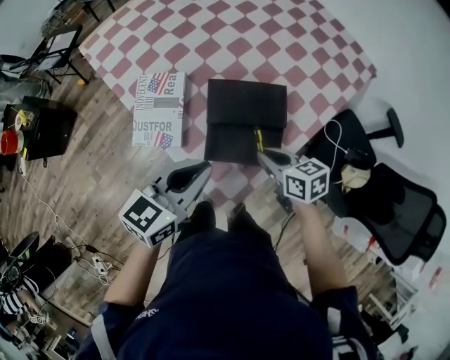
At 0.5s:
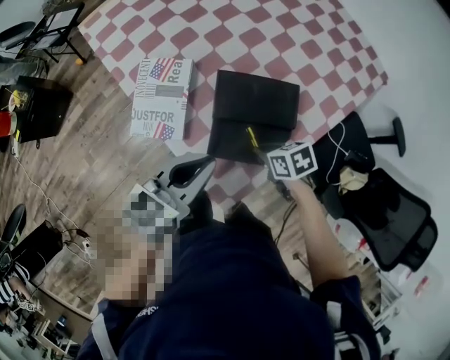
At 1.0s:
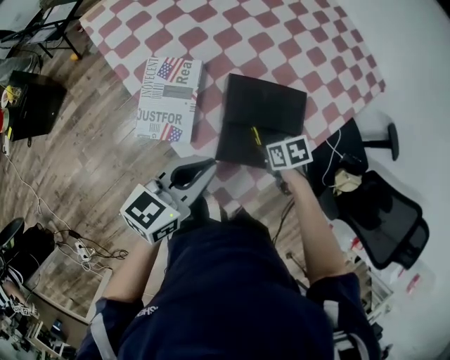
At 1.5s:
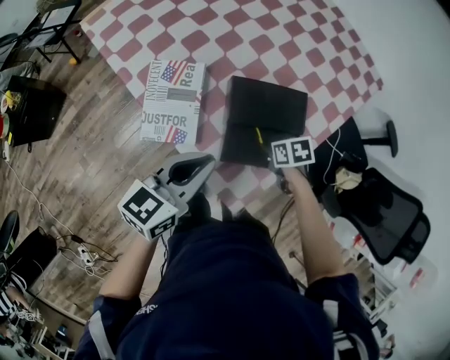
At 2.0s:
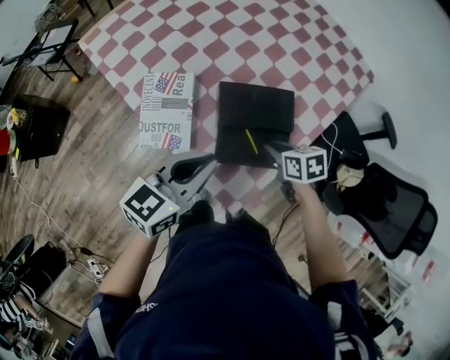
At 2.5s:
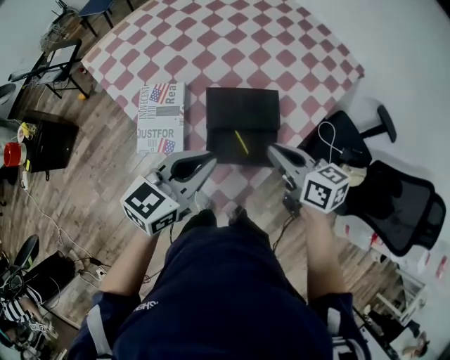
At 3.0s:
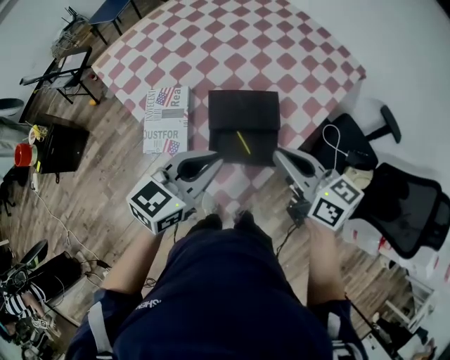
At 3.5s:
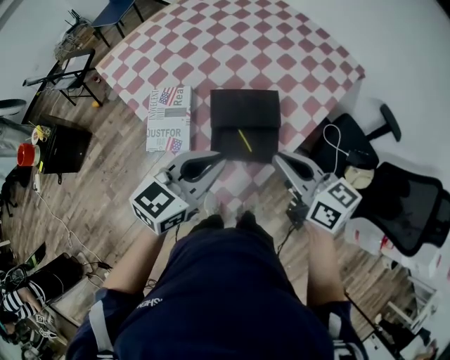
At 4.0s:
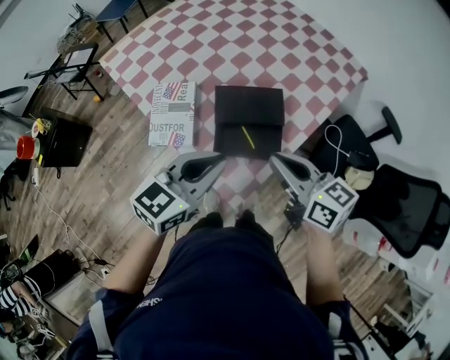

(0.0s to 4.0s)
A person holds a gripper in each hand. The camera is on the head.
0.0s - 2.0s: The right gripper goes downward and returns, some 10 cm each way.
2.0s - 4.0s: The right gripper moves upward, about 20 cm, and tilts its fingers approximately 40 degrees upward; the left gripper goes approximately 10 cm upward, to the right and backward.

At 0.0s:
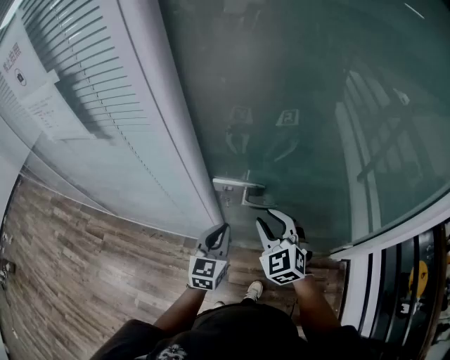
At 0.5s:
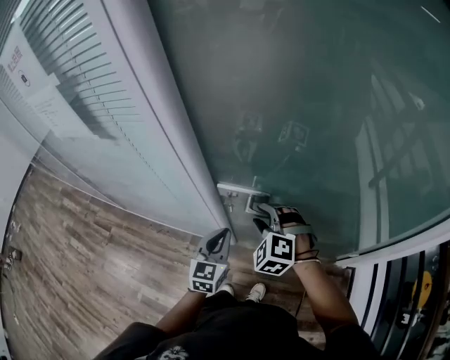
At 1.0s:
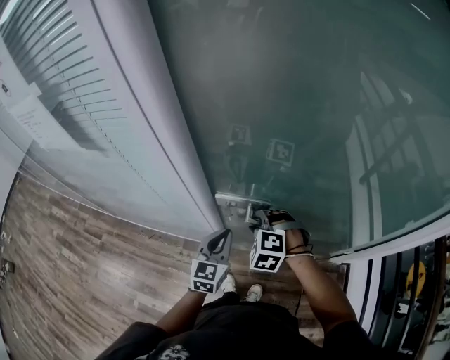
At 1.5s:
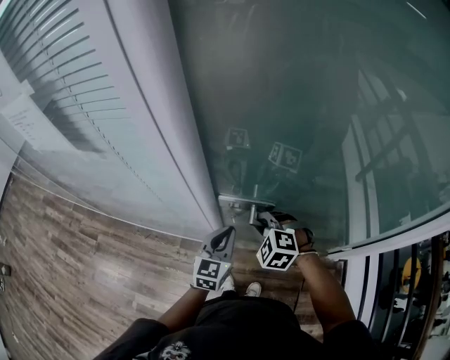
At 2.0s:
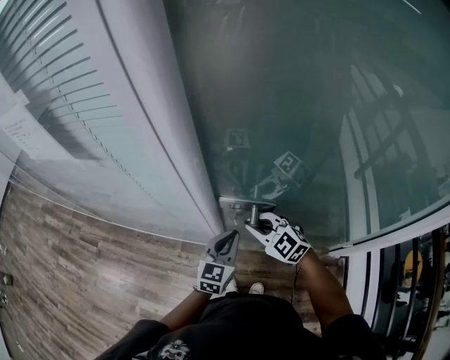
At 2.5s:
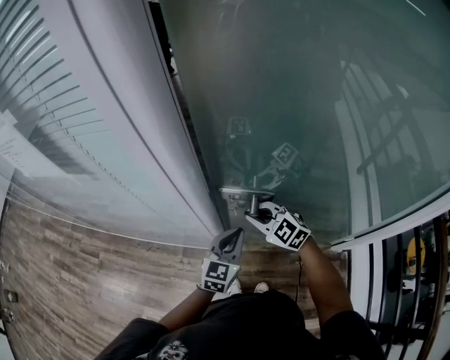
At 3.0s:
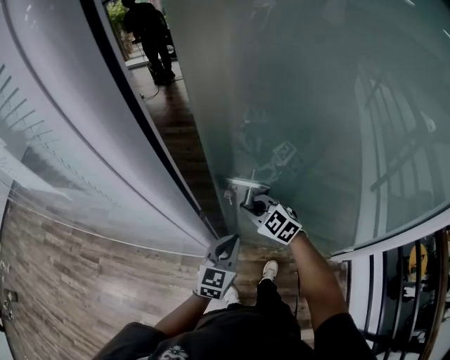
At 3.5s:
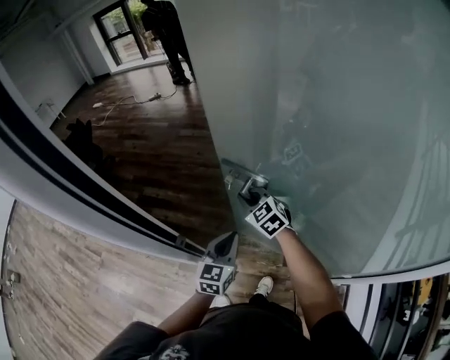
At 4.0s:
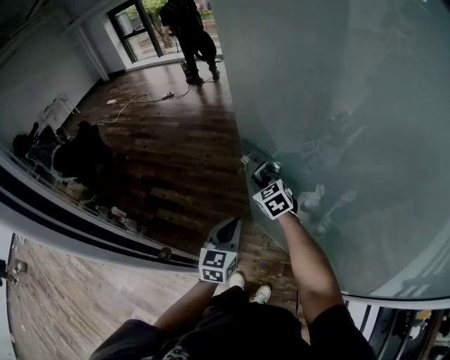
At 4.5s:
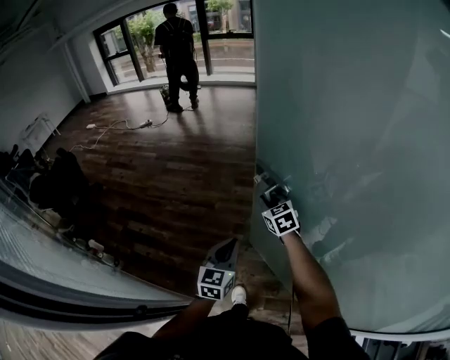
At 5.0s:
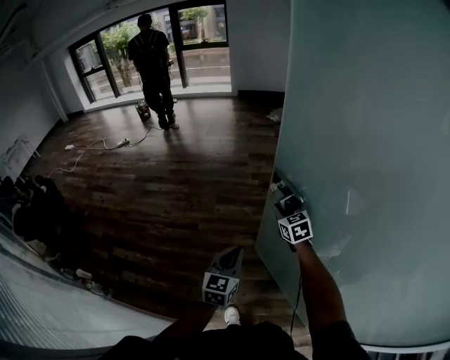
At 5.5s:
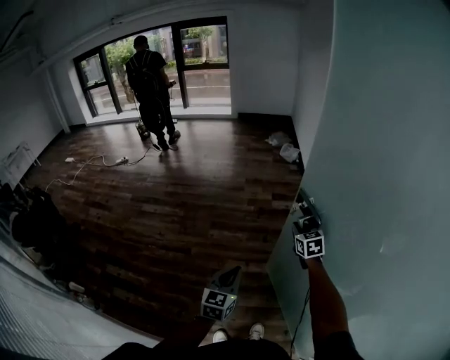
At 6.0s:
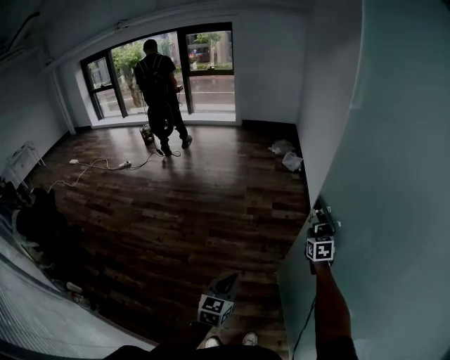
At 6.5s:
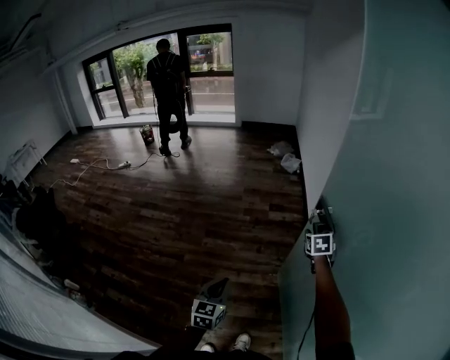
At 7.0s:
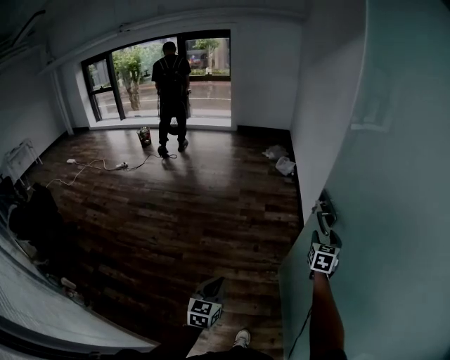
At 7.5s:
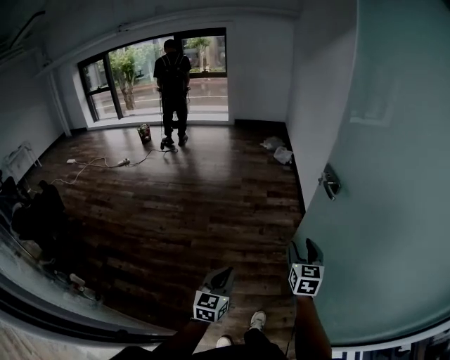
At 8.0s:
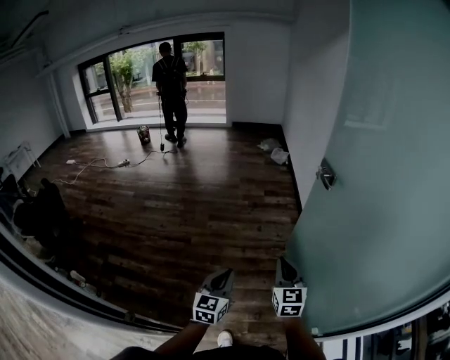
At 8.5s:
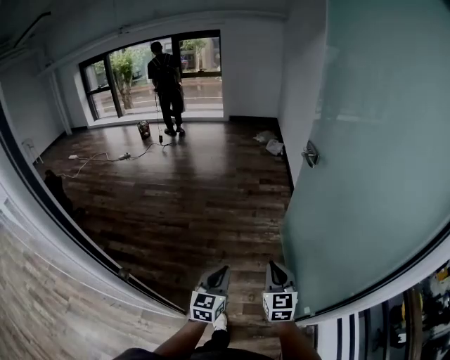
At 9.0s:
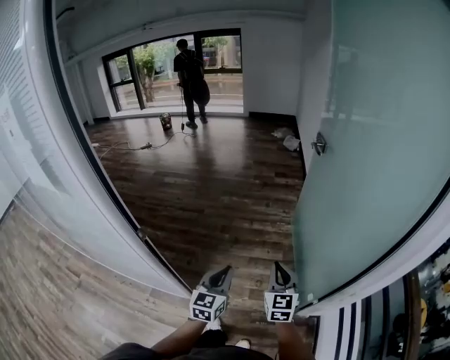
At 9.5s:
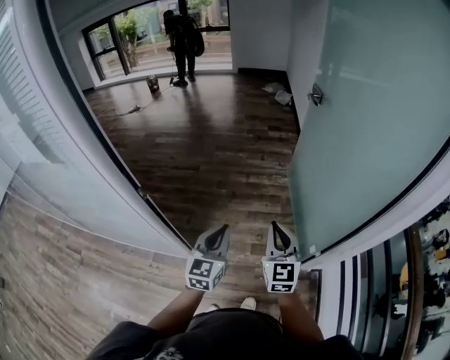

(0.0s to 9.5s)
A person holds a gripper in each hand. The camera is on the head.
0.0s - 2.0s: The left gripper moves forward, roughly 5 cm, while the right gripper heads downward, forward and to the left, covering approximately 10 cm, swivels some 30 degrees, and closes its fingers.
2.0s - 4.0s: Both grippers travel together forward and to the right, roughly 40 cm. The right gripper rotates some 20 degrees.
4.0s - 5.5s: The left gripper is displaced forward and to the right by roughly 40 cm. Meanwhile the right gripper shifts some 50 cm to the right and forward, and rotates approximately 30 degrees.
5.5s - 7.5s: The right gripper heads backward, covering approximately 30 cm, turns by approximately 20 degrees, and opens, while the left gripper shifts roughly 20 cm backward.
7.5s - 9.5s: The pair of grippers is taken backward, approximately 50 cm. The right gripper closes its fingers.

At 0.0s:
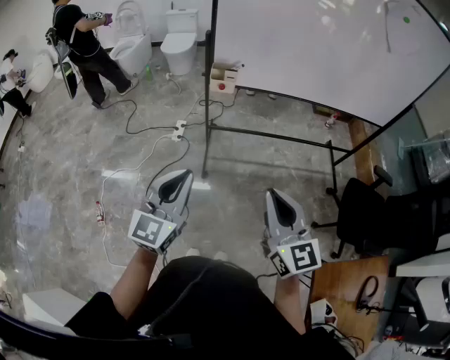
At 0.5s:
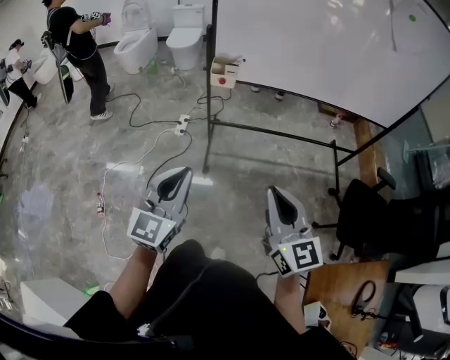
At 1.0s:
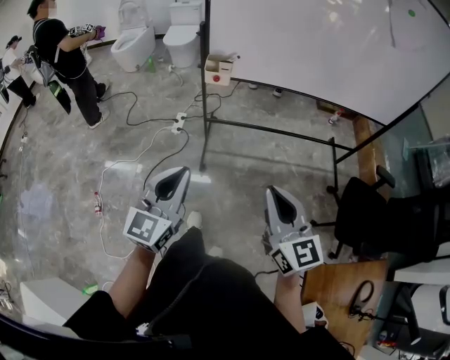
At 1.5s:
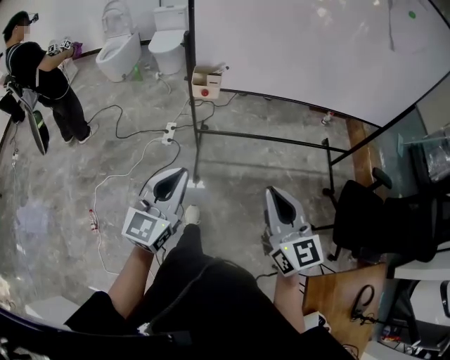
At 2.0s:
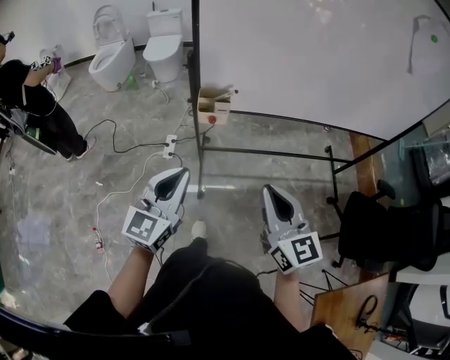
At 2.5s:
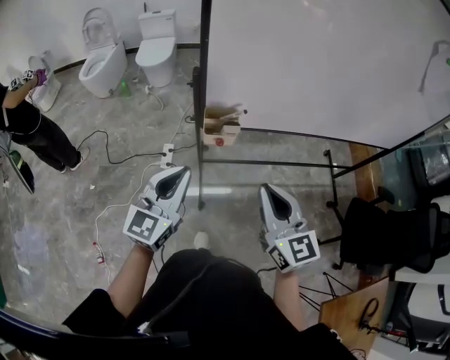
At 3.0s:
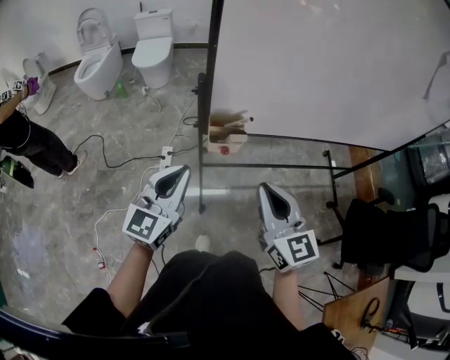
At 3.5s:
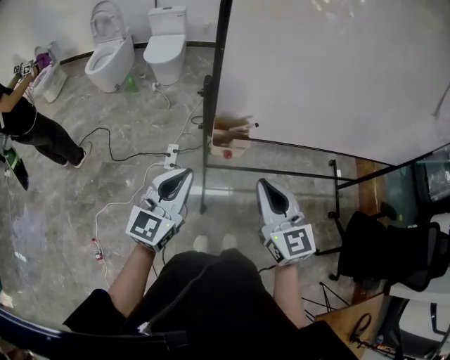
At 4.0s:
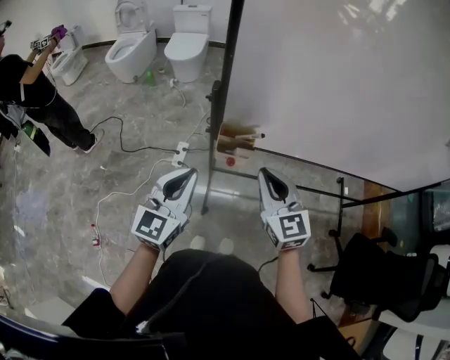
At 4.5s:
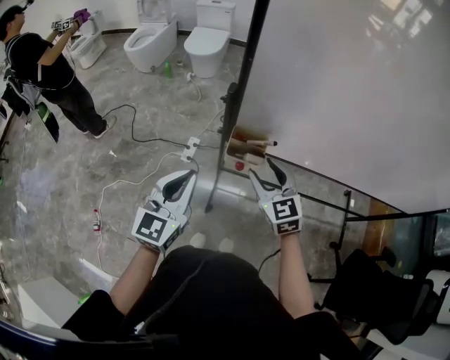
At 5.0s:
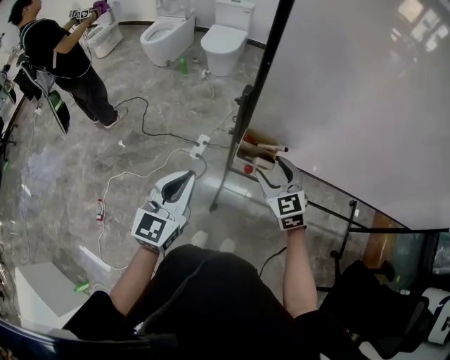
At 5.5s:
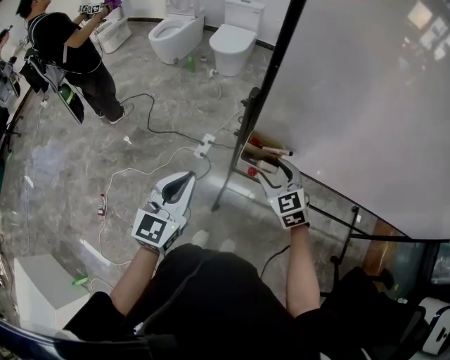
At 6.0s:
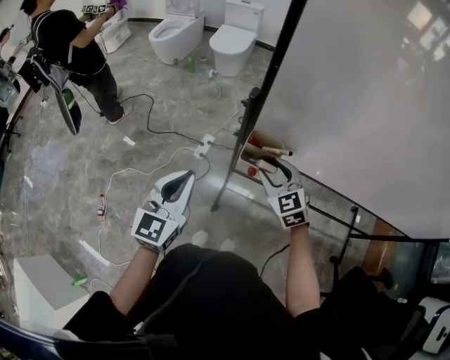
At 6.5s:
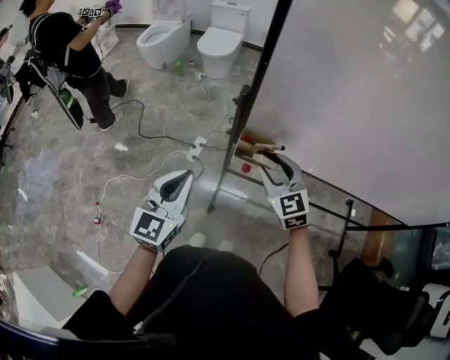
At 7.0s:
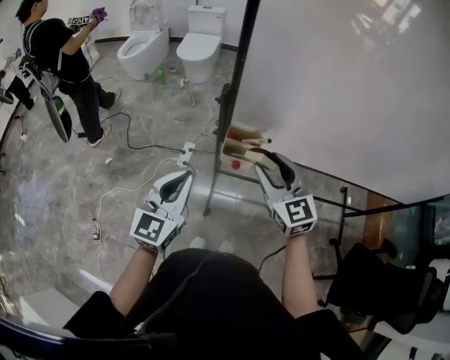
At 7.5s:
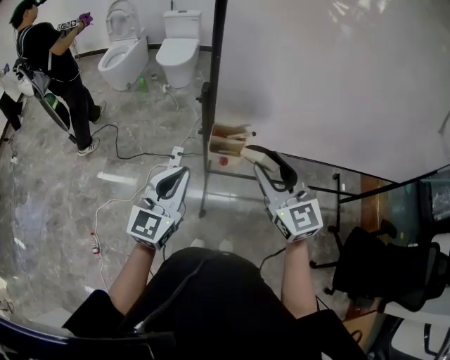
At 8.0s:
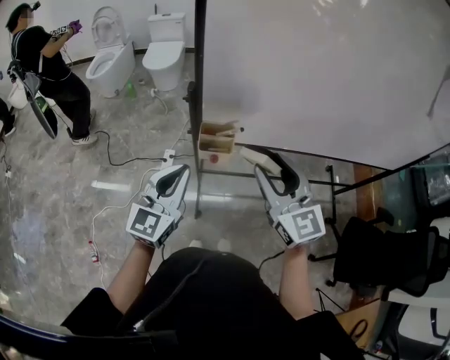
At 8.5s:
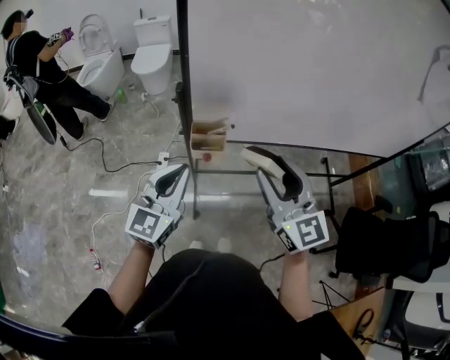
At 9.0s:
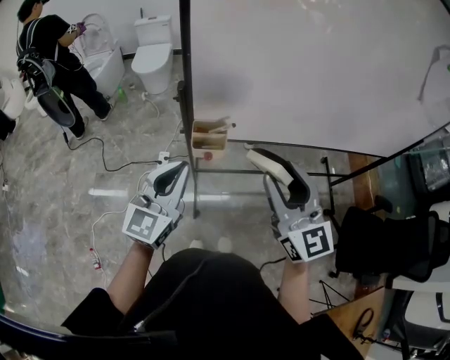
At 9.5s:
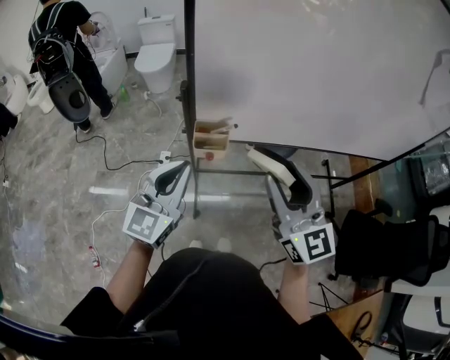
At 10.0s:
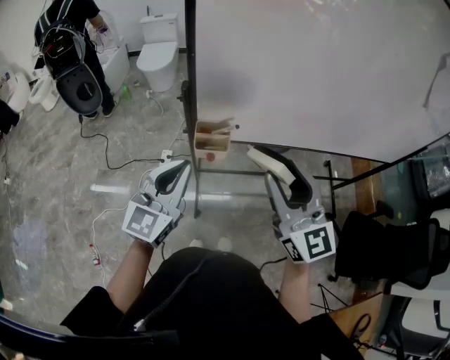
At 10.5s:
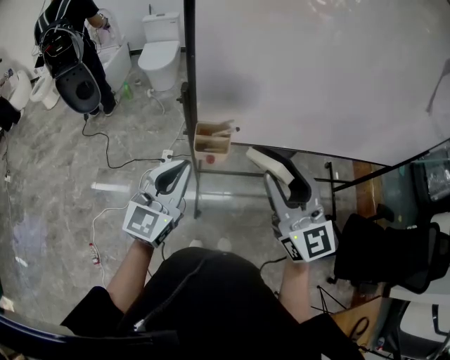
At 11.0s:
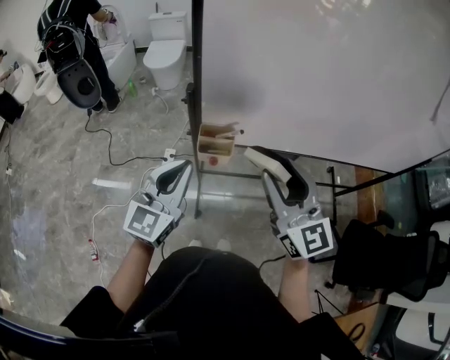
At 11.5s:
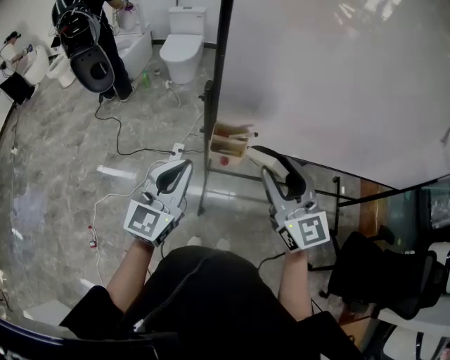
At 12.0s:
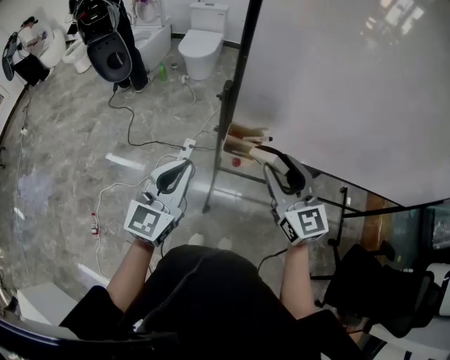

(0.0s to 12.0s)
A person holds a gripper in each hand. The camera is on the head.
0.0s - 2.0s: The grippers both shift forward by approximately 25 cm.
2.0s - 4.0s: The grippers both shift forward by about 20 cm.
4.0s - 6.0s: The right gripper heads downward and forward, covering roughly 15 cm, rotates approximately 30 degrees, and opens up, while the left gripper heads to the left, covering some 5 cm.
6.0s - 8.0s: The left gripper shifts some 10 cm to the right, and swivels approximately 20 degrees; the right gripper moves upward and backward, roughly 20 cm, and swivels approximately 30 degrees.
8.0s - 10.0s: The right gripper changes place by about 5 cm.
10.0s - 12.0s: The right gripper is displaced forward, downward and to the left by roughly 15 cm; the left gripper shifts roughly 5 cm to the left.

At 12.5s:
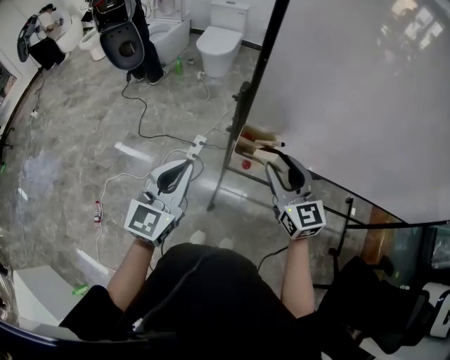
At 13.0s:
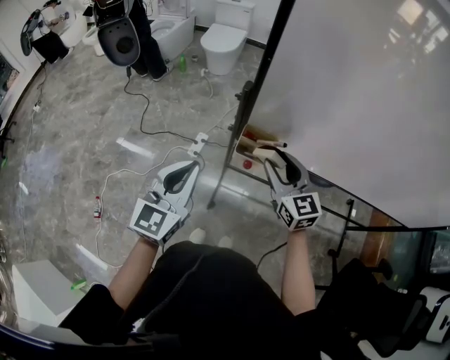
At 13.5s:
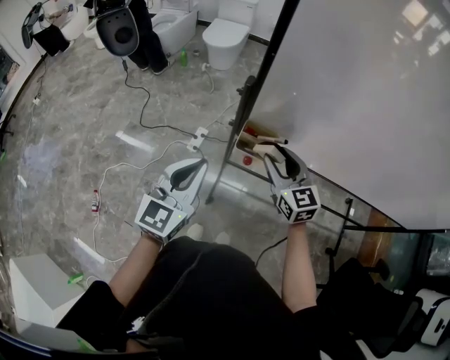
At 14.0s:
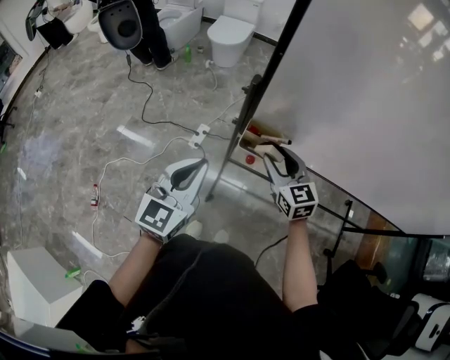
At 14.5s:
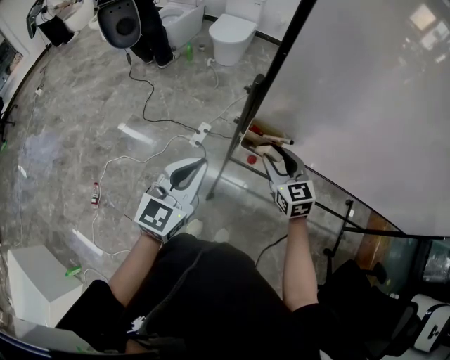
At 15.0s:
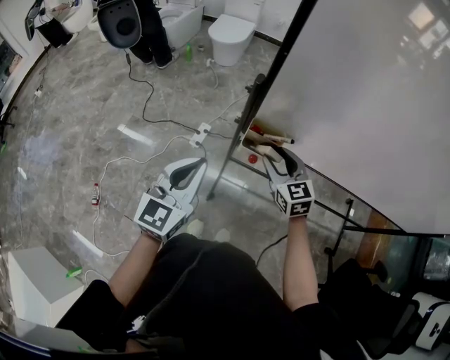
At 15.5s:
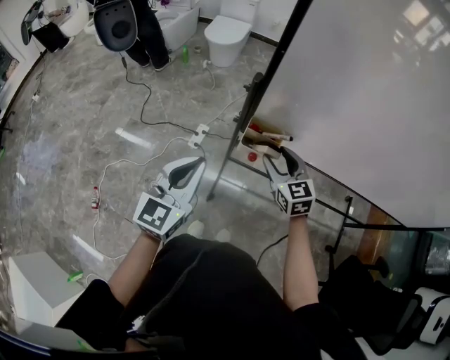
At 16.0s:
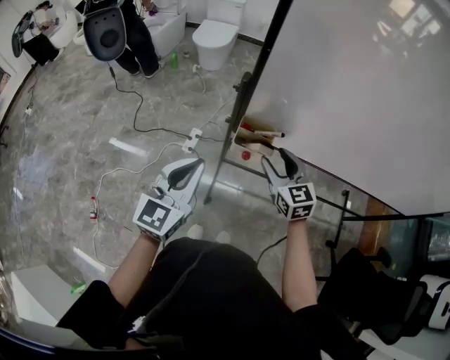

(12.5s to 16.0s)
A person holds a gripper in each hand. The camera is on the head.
12.5s - 14.5s: The right gripper moves downward, some 10 cm.
14.5s - 16.0s: The grippers move only a little.
